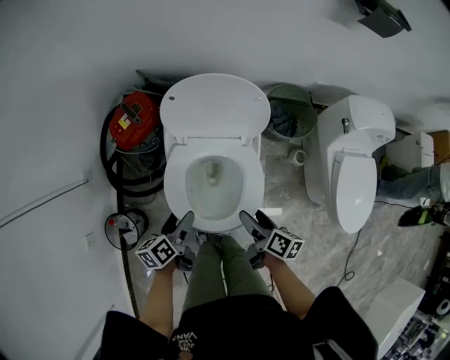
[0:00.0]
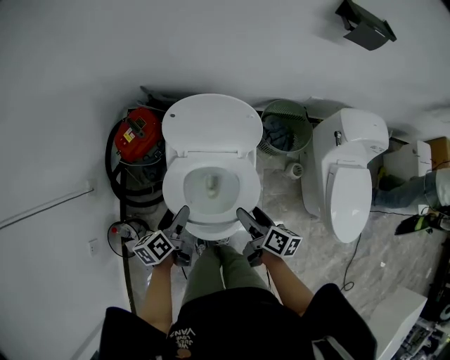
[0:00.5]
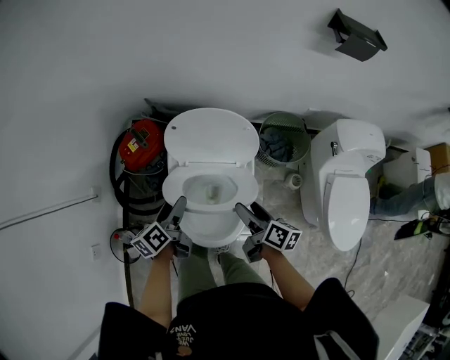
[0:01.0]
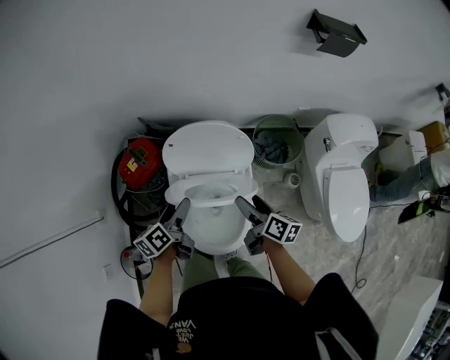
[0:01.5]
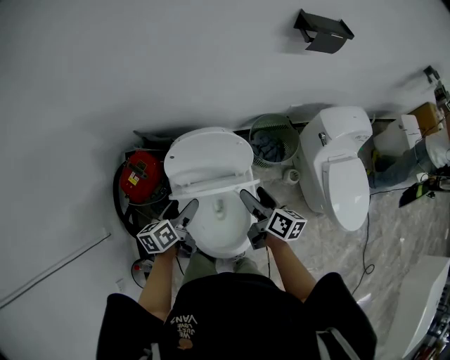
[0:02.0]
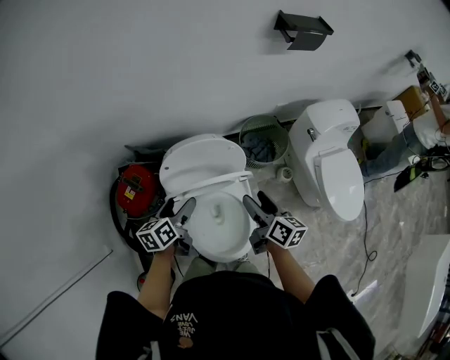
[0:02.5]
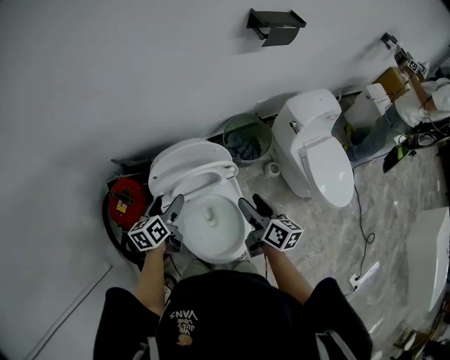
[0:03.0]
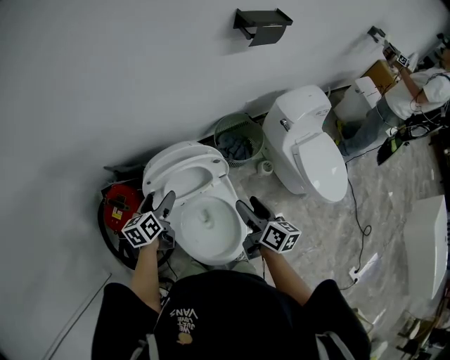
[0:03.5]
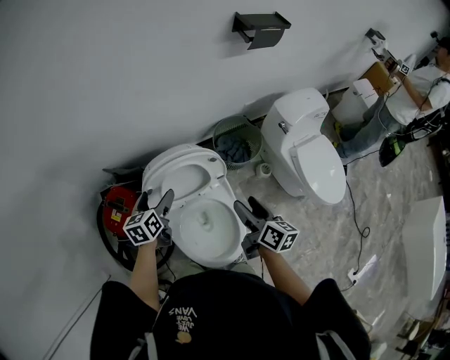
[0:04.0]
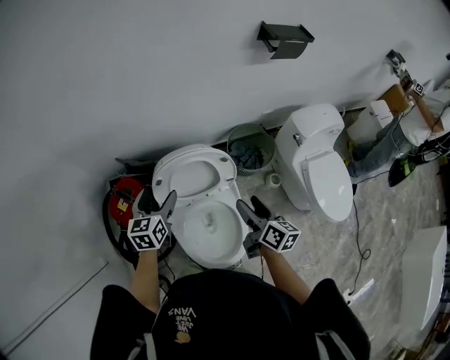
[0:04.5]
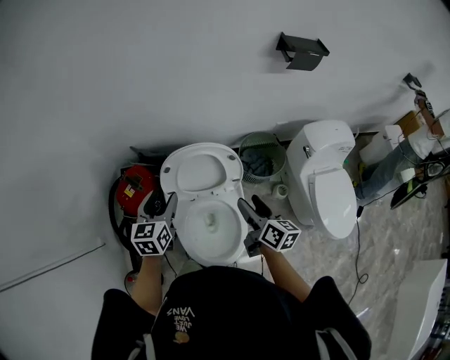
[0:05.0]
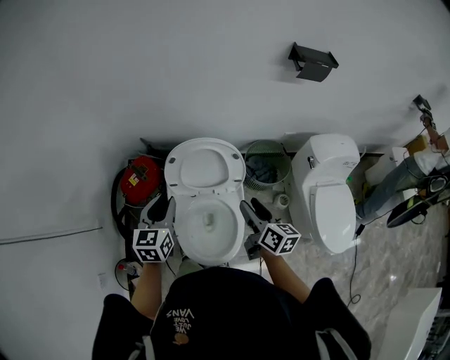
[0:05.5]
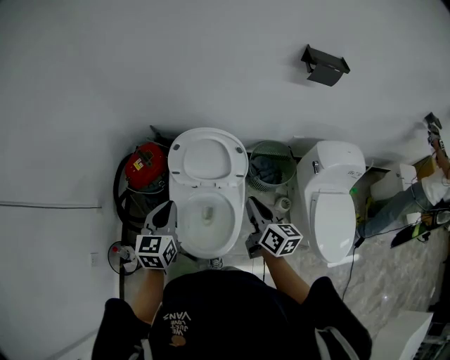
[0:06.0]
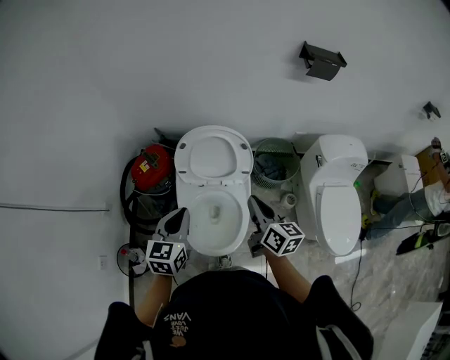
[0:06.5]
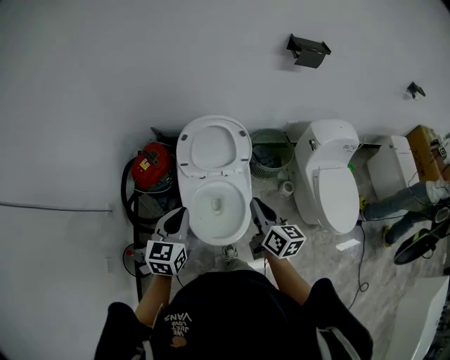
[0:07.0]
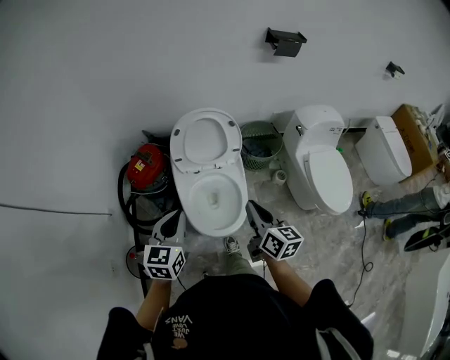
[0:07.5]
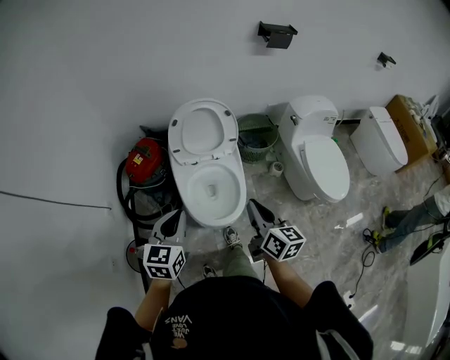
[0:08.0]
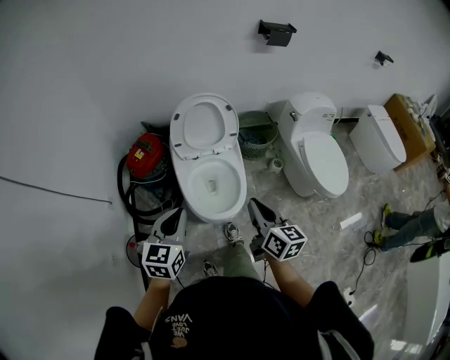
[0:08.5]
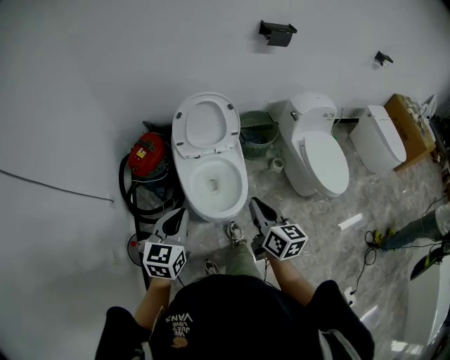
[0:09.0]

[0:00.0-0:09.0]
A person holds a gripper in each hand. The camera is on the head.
0.0 to 2.0 s: The two grippers go about 20 cm forward and upward. The right gripper rotates about 20 degrees. The left gripper turns by roughly 20 degrees.
2.0 to 4.5 s: The left gripper heads forward and upward, covering approximately 10 cm, and swivels approximately 30 degrees.
4.5 to 7.0 s: The right gripper is displaced backward by about 15 cm, and closes its fingers, while the left gripper is displaced backward by some 30 cm, and closes its fingers.
7.0 to 9.0 s: The two grippers go approximately 20 cm backward.

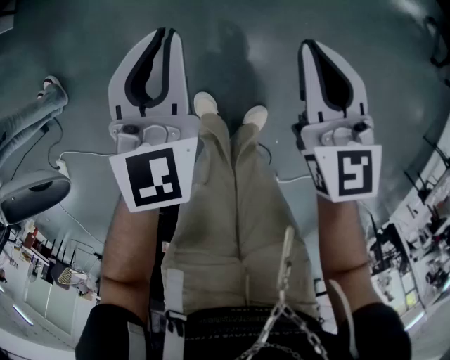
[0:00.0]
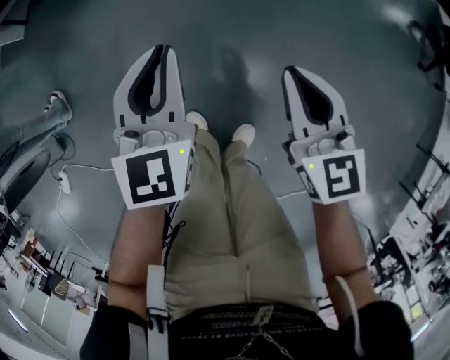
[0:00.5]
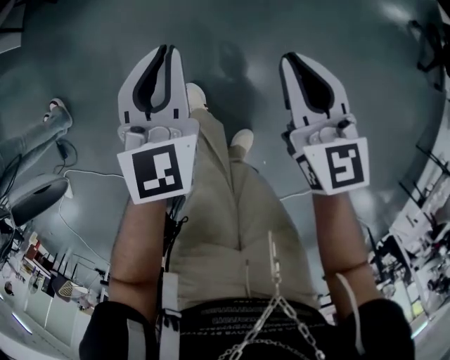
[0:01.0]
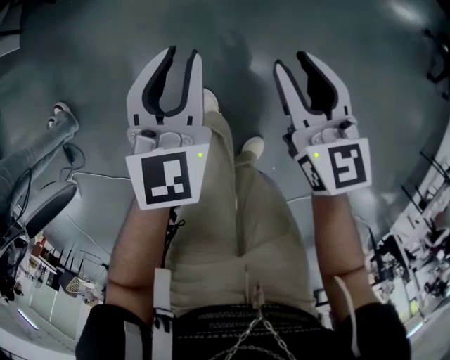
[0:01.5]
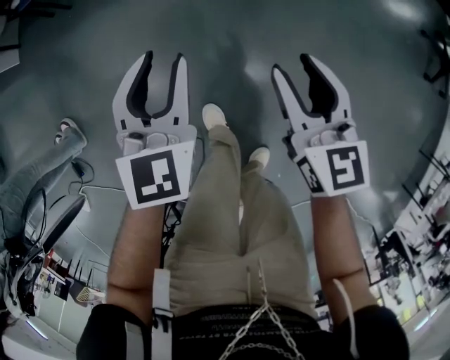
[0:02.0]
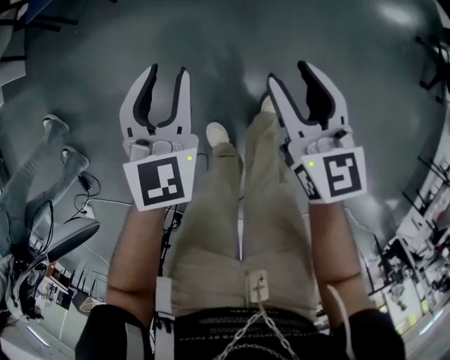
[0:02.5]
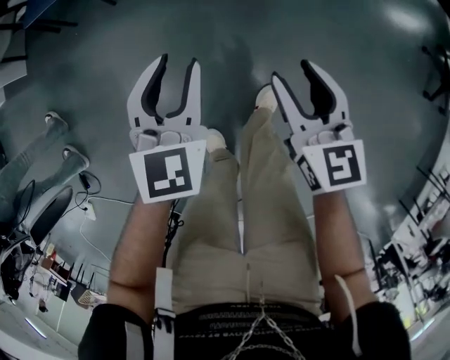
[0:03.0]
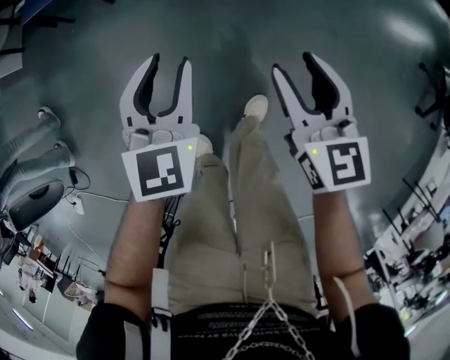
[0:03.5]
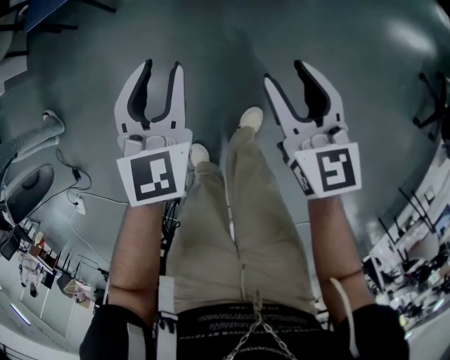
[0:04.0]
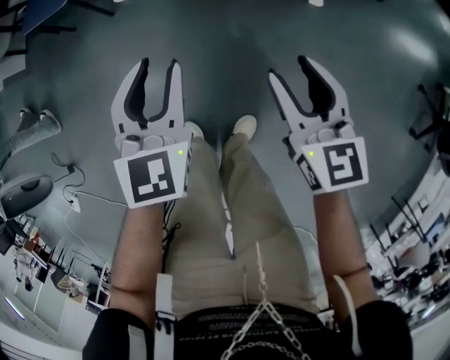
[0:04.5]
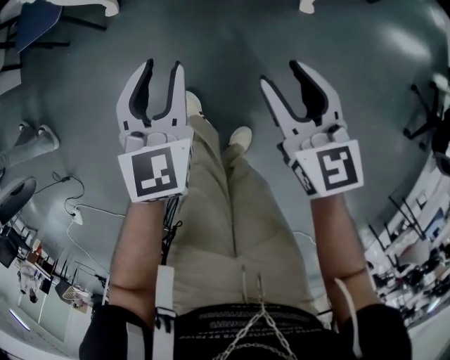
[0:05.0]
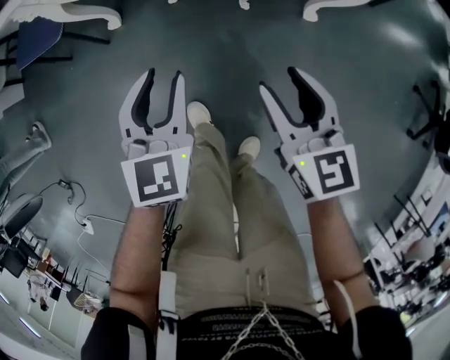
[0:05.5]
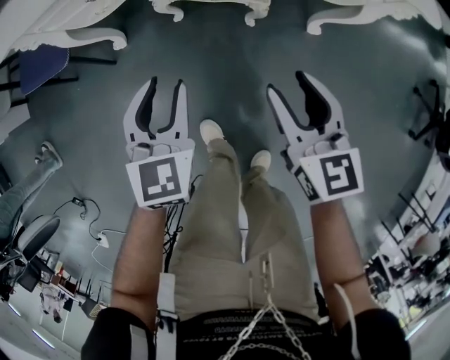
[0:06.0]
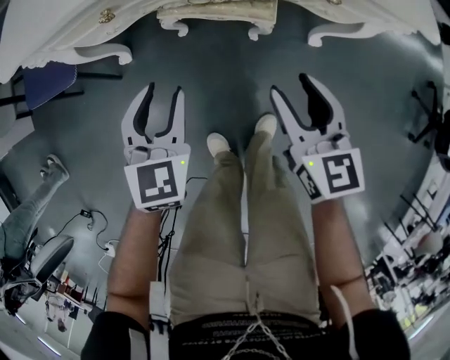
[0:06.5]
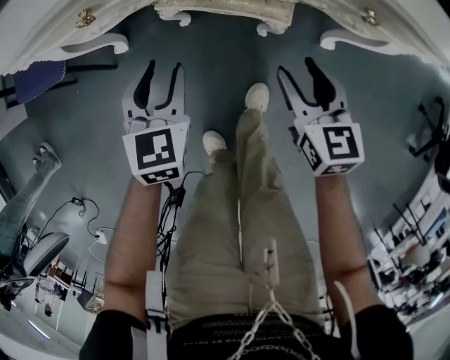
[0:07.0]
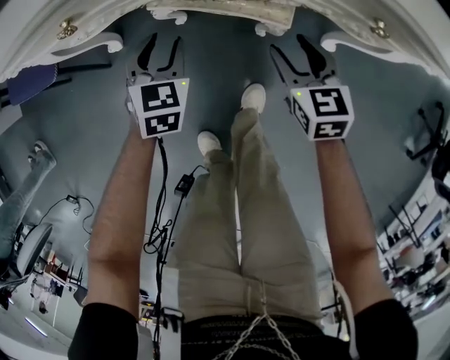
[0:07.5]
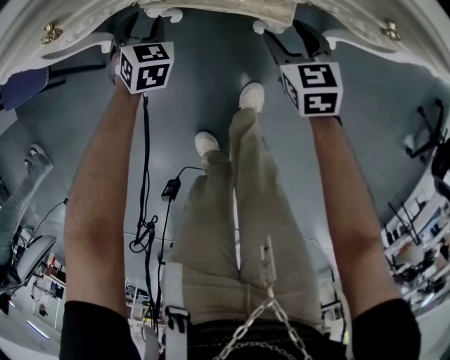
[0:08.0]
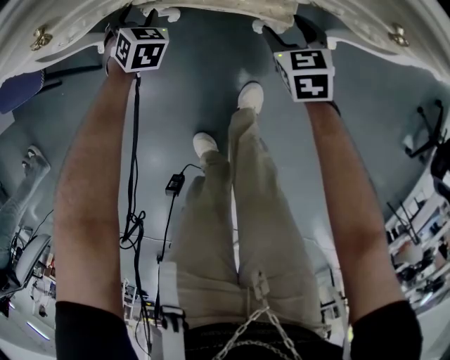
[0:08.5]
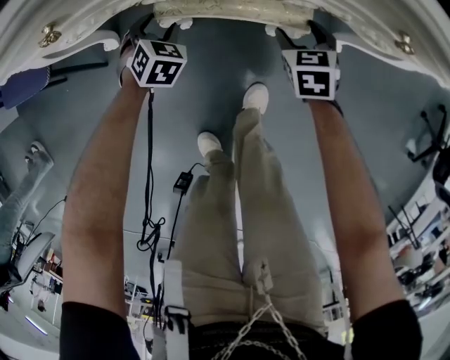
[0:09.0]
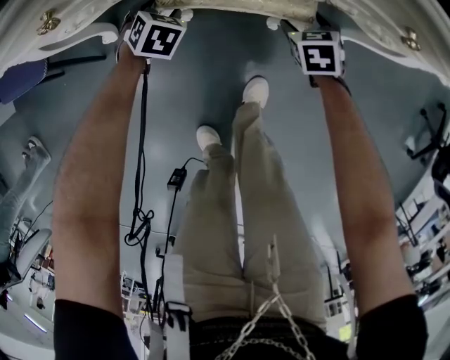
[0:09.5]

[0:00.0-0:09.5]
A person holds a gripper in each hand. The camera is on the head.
0.0 to 2.0 s: The two grippers go some 15 cm forward. The left gripper opens its fingers, while the right gripper opens up.
2.0 to 4.0 s: The two grippers go approximately 20 cm forward and to the right.
4.0 to 5.5 s: Both grippers travel together forward, roughly 10 cm.
5.5 to 7.5 s: The two grippers go approximately 25 cm forward and downward.
7.5 to 9.5 s: The left gripper travels downward and forward by approximately 15 cm, changes its angle by about 20 degrees, and opens. Meanwhile the right gripper goes roughly 15 cm downward, to the right and forward, rotates approximately 20 degrees, and opens up.

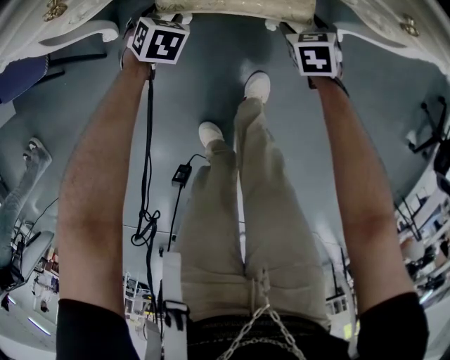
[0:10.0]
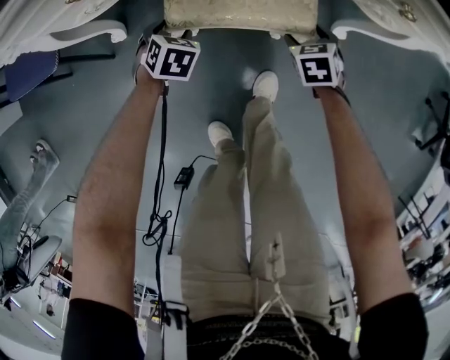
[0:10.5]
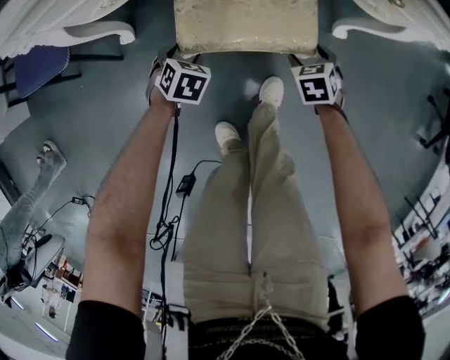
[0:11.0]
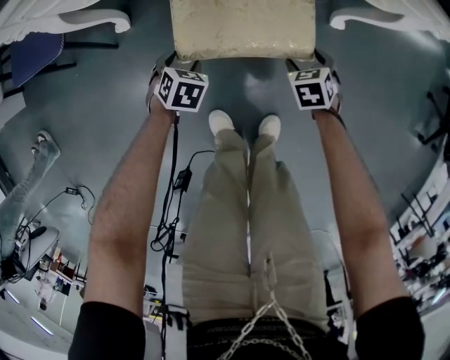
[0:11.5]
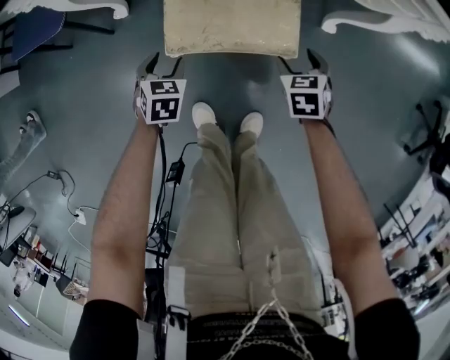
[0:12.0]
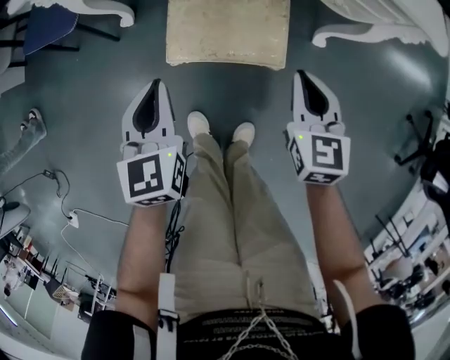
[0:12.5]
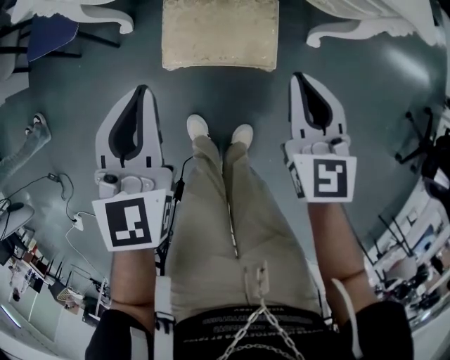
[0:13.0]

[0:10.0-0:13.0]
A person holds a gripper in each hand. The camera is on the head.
10.0 to 11.5 s: Both grippers move backward, some 20 cm.
11.5 to 13.0 s: Both grippers move upward, about 35 cm. The left gripper tips its fingers upward by about 50 degrees, and closes; the right gripper tips its fingers upward by approximately 40 degrees, and closes up.

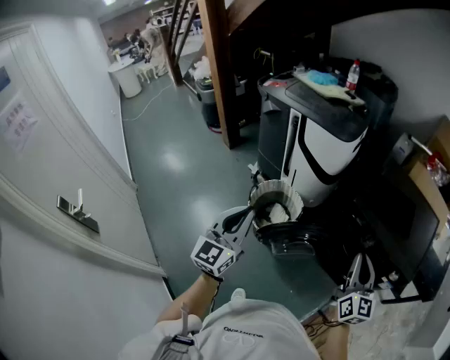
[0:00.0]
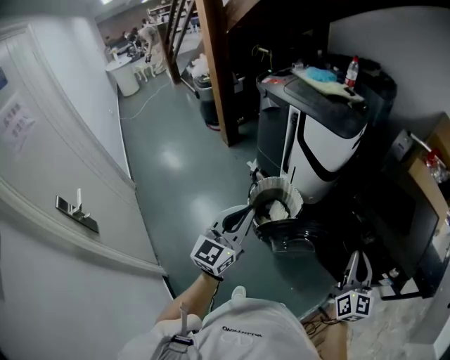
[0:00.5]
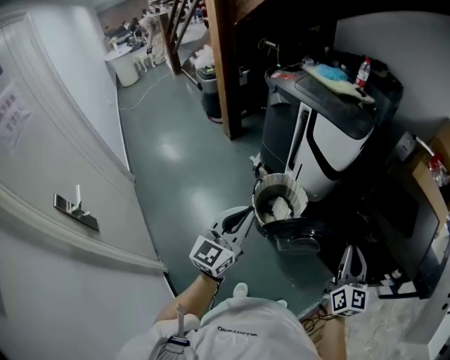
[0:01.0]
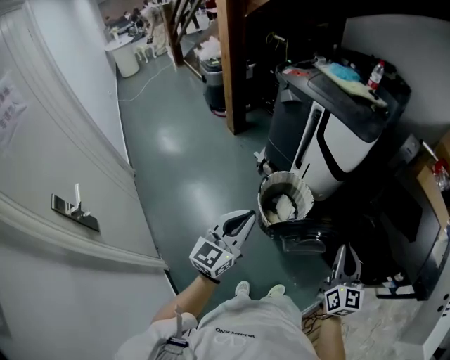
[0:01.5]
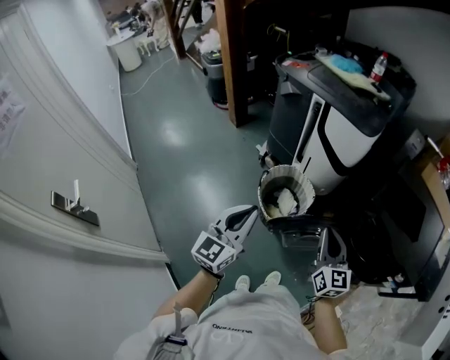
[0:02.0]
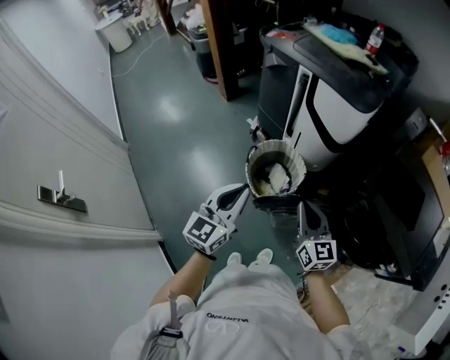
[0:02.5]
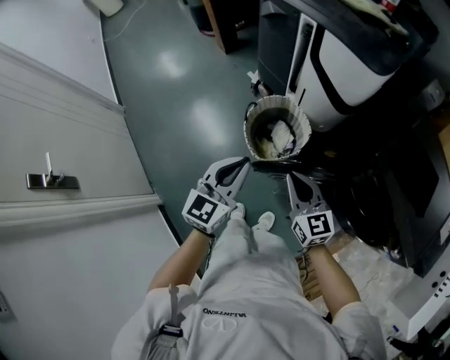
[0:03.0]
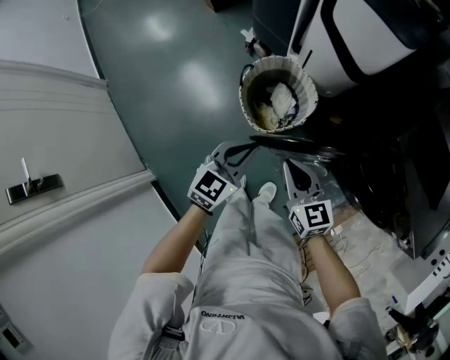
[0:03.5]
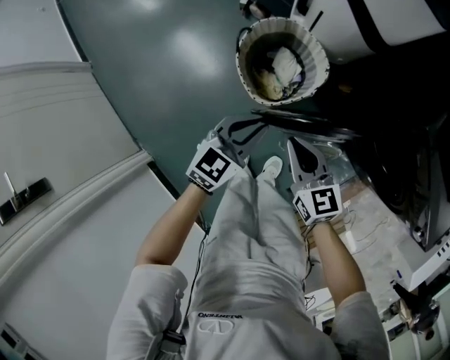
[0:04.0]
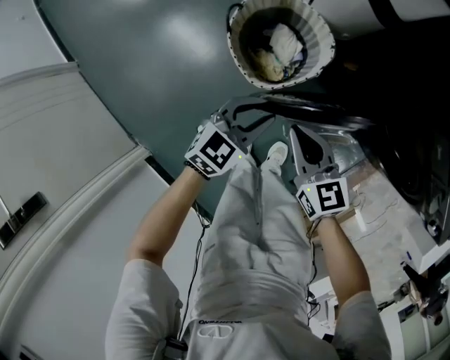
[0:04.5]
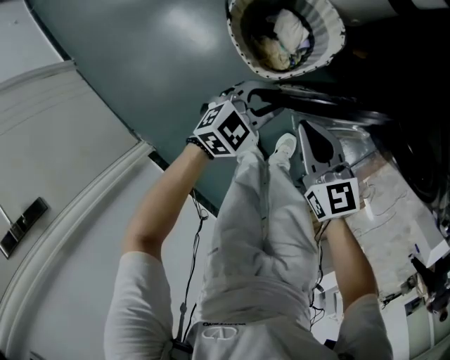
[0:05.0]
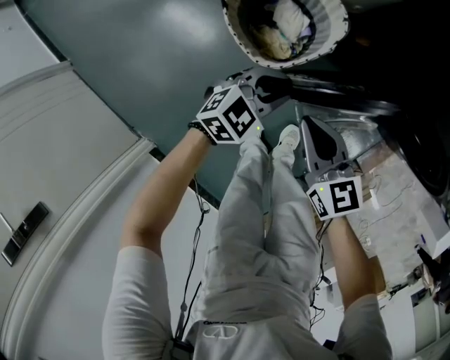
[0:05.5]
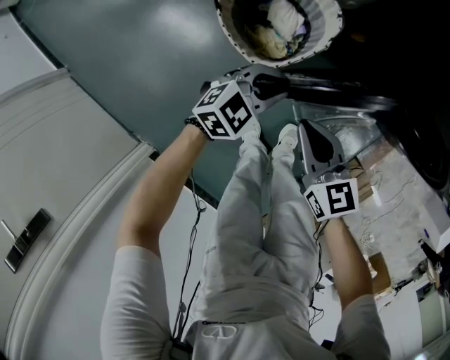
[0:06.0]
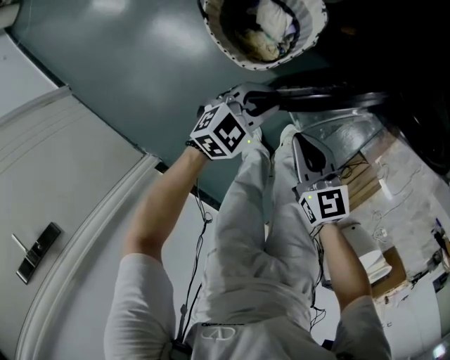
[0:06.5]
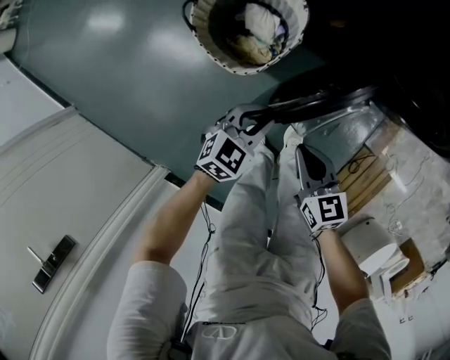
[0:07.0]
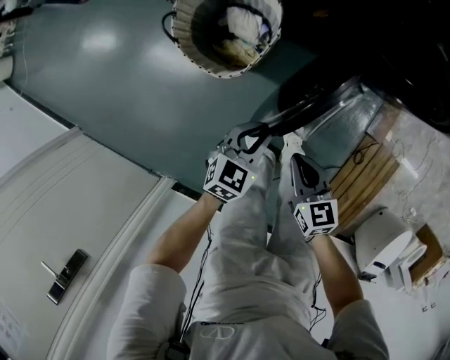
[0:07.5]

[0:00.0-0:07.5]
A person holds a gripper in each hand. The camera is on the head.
0.0 to 2.0 s: The right gripper shifts about 20 cm to the left; the left gripper travels to the left and downward by roughly 10 cm.
2.0 to 4.0 s: Both grippers travel together downward, about 30 cm. The right gripper rotates some 30 degrees, while the left gripper swivels some 30 degrees.
4.0 to 5.5 s: The left gripper moves downward, approximately 15 cm, and turns by approximately 30 degrees. Meanwhile the right gripper travels downward by approximately 10 cm.
5.5 to 7.5 s: Both grippers travel together backward and to the right, about 15 cm. The right gripper changes its angle by roughly 20 degrees.
